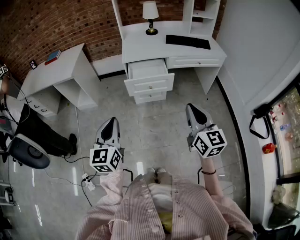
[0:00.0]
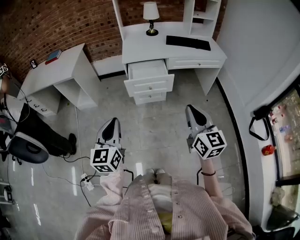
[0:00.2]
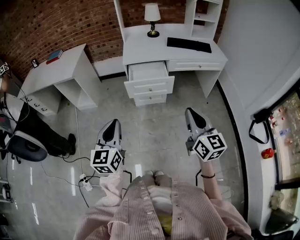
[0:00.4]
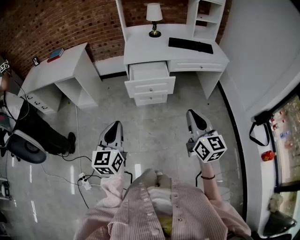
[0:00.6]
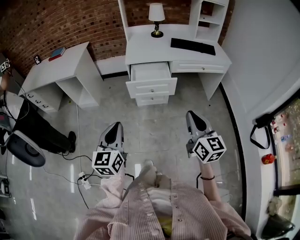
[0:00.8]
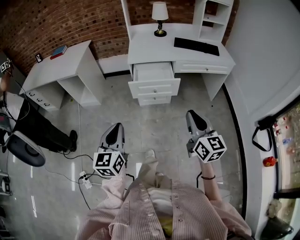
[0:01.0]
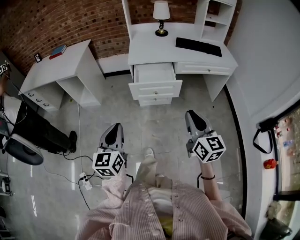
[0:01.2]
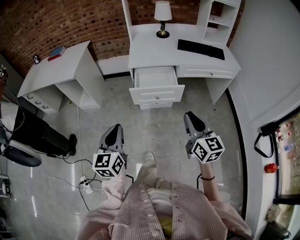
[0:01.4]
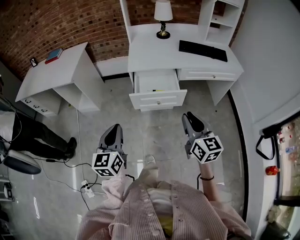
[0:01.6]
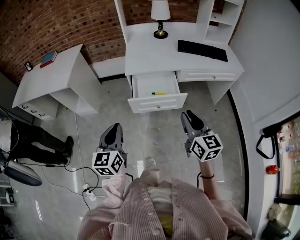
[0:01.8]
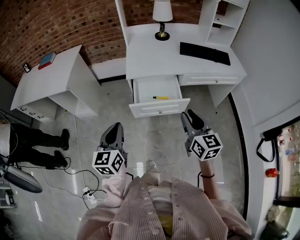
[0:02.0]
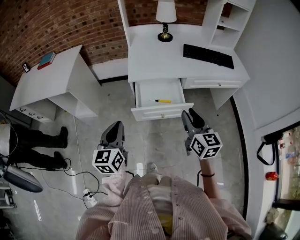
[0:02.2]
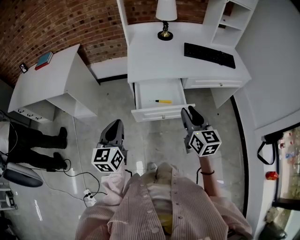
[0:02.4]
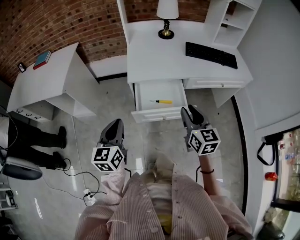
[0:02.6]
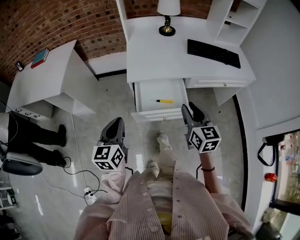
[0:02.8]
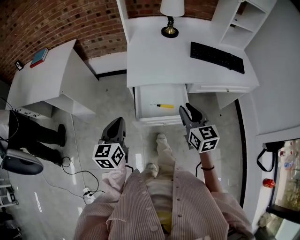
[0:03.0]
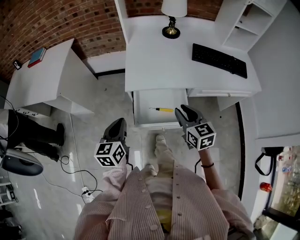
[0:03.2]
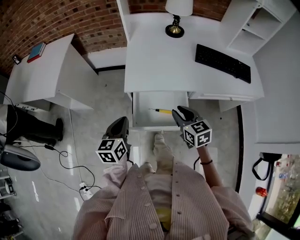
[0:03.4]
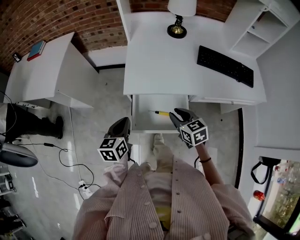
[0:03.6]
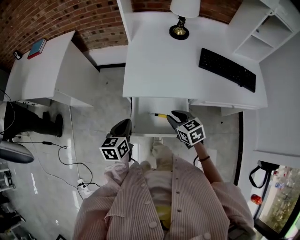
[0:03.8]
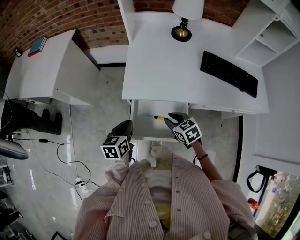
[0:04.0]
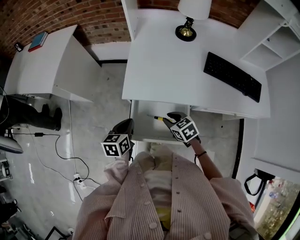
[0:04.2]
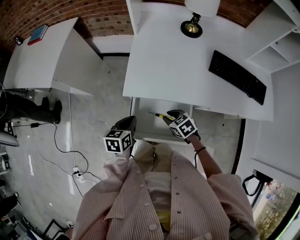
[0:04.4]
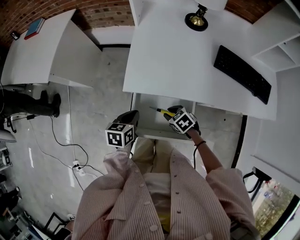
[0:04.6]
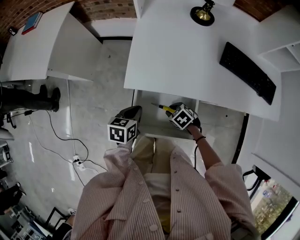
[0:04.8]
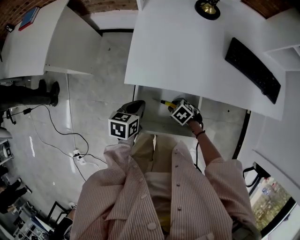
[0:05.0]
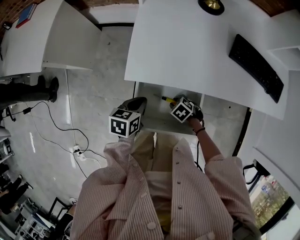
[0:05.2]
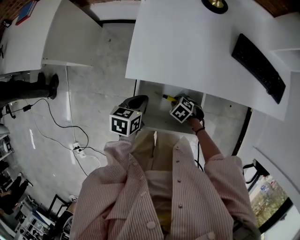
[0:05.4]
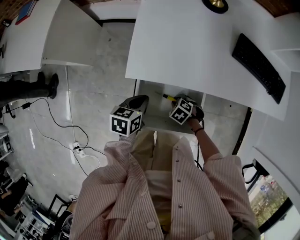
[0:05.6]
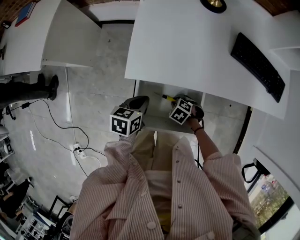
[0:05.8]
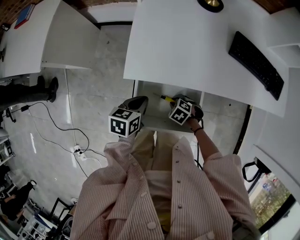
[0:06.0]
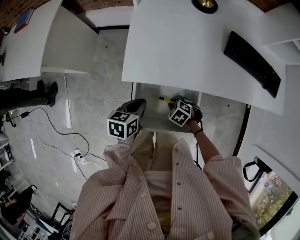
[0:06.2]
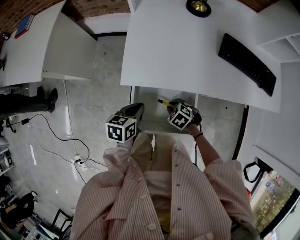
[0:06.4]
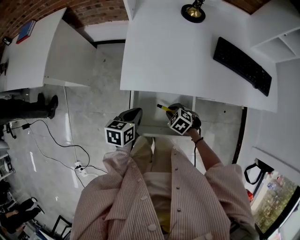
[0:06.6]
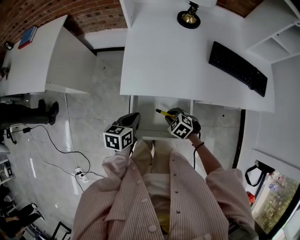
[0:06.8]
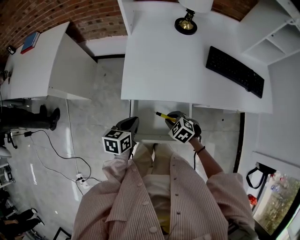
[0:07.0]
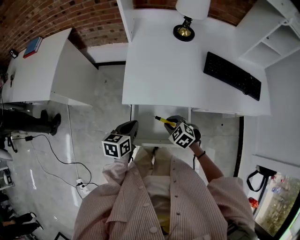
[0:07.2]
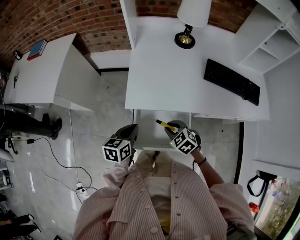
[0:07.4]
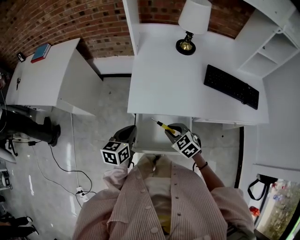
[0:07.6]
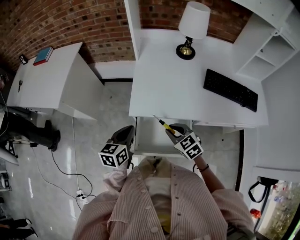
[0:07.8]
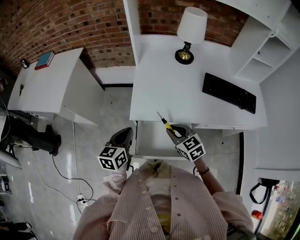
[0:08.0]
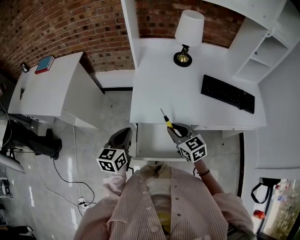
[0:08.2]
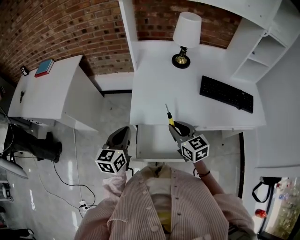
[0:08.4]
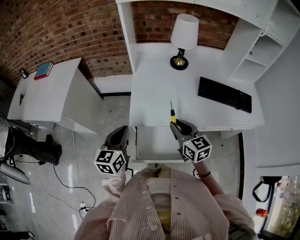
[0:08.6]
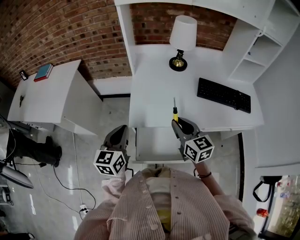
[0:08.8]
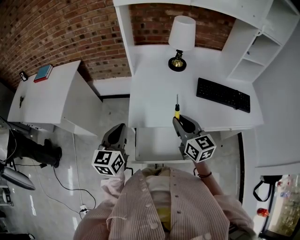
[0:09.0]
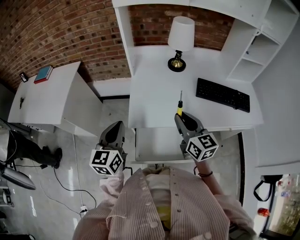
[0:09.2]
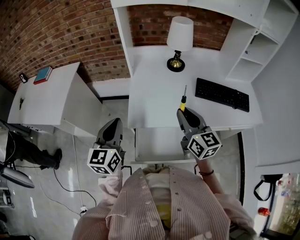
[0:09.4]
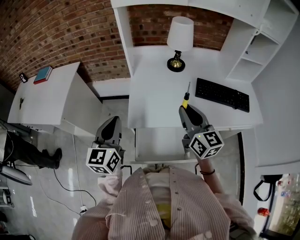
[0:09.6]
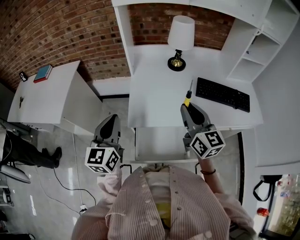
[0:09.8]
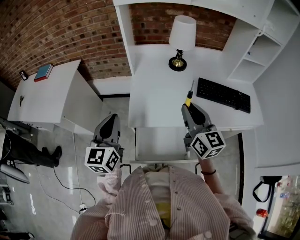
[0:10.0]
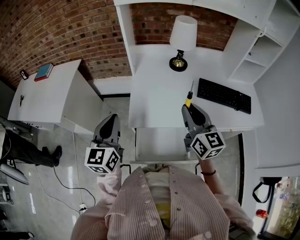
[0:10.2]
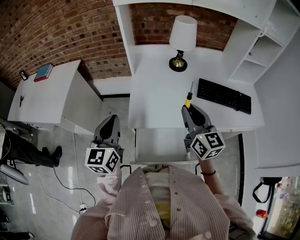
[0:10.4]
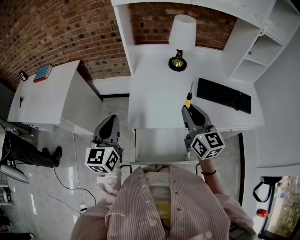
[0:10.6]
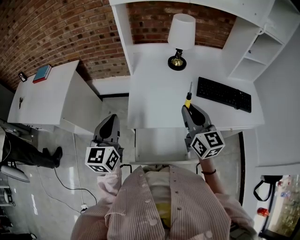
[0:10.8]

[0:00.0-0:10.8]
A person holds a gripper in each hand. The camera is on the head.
0:00.0 to 0:01.6: Both grippers travel together forward, roughly 15 cm.
0:01.6 to 0:03.0: Both grippers travel together forward, approximately 25 cm.
0:03.0 to 0:04.6: The right gripper heads downward and forward, covering roughly 30 cm, and tips its fingers downward by roughly 40 degrees; the left gripper goes some 25 cm downward, forward and to the right, and rotates some 30 degrees.
0:04.6 to 0:06.2: The right gripper is displaced downward by roughly 5 cm.
0:06.2 to 0:07.8: The left gripper moves upward and to the left, some 15 cm, and changes its angle by about 20 degrees, while the right gripper shifts about 20 cm upward, and points its fingers roughly 30 degrees further upward.
0:07.8 to 0:09.2: The grippers both shift upward by approximately 15 cm. The right gripper angles its fingers upward, by approximately 30 degrees; the left gripper changes its angle by some 20 degrees.
0:09.2 to 0:10.8: The right gripper ends up roughly 5 cm from where it was.

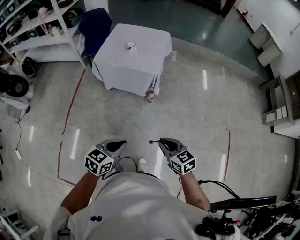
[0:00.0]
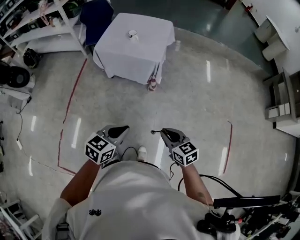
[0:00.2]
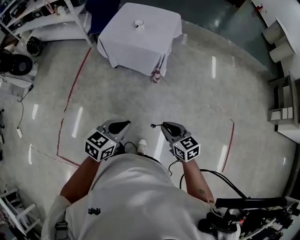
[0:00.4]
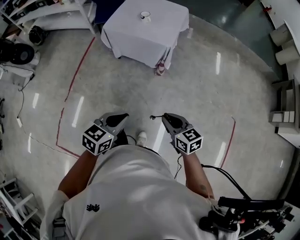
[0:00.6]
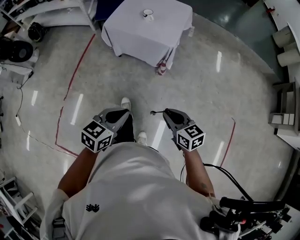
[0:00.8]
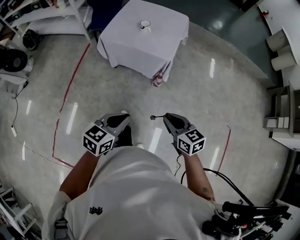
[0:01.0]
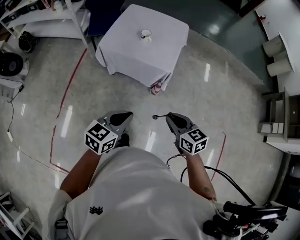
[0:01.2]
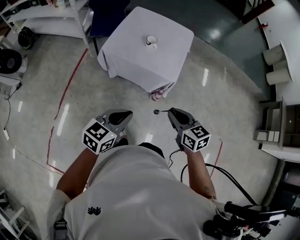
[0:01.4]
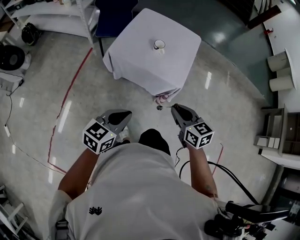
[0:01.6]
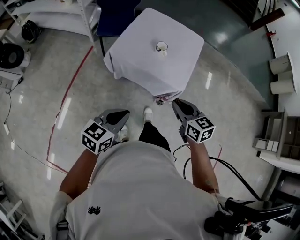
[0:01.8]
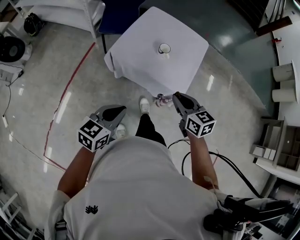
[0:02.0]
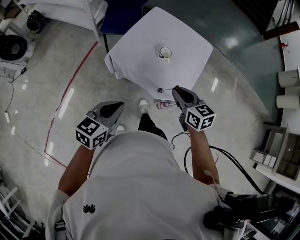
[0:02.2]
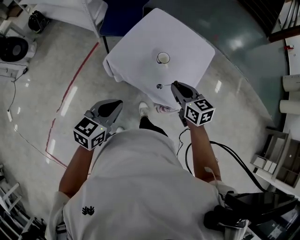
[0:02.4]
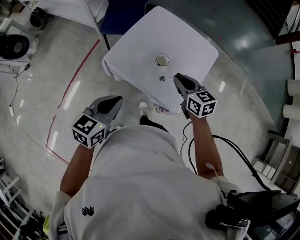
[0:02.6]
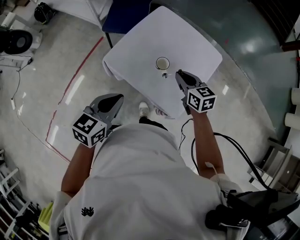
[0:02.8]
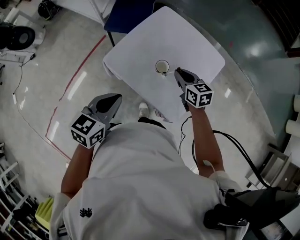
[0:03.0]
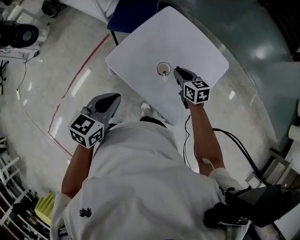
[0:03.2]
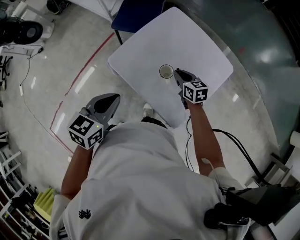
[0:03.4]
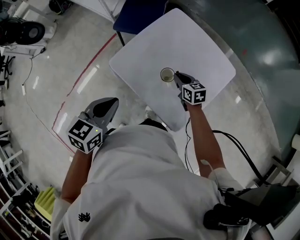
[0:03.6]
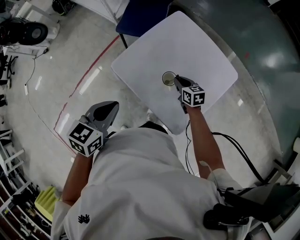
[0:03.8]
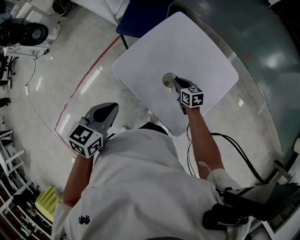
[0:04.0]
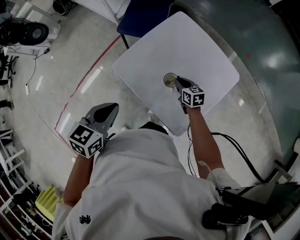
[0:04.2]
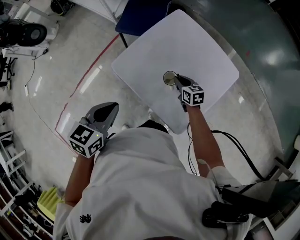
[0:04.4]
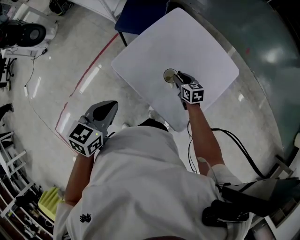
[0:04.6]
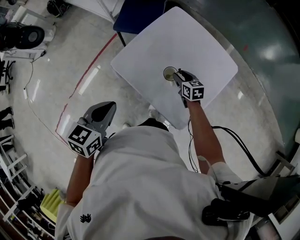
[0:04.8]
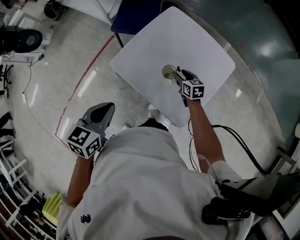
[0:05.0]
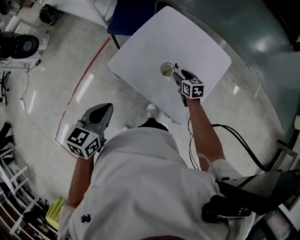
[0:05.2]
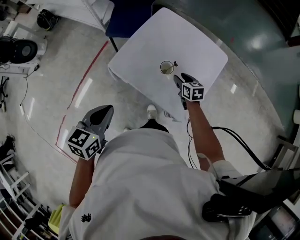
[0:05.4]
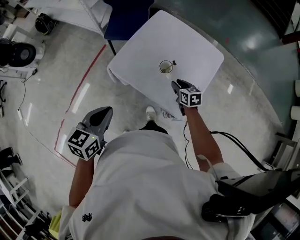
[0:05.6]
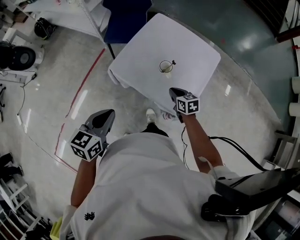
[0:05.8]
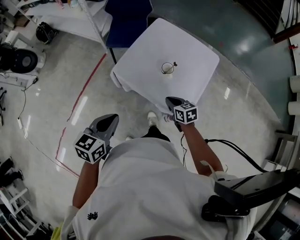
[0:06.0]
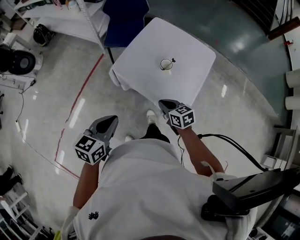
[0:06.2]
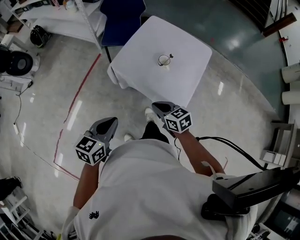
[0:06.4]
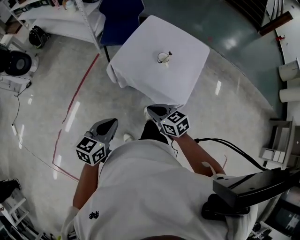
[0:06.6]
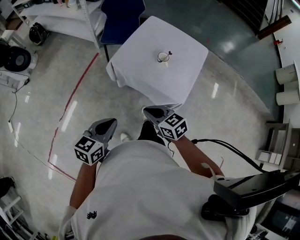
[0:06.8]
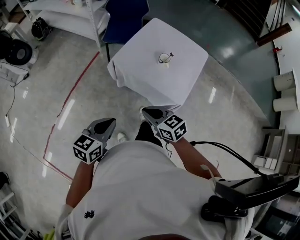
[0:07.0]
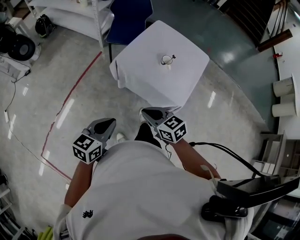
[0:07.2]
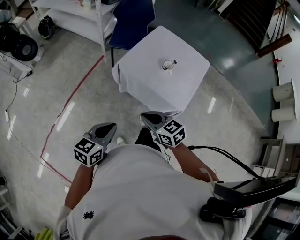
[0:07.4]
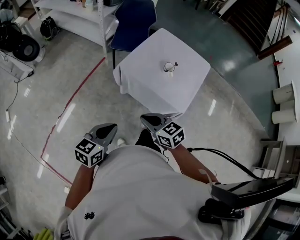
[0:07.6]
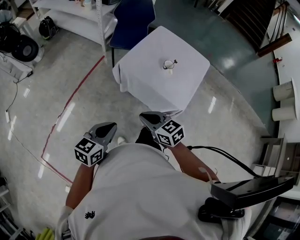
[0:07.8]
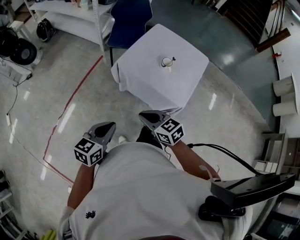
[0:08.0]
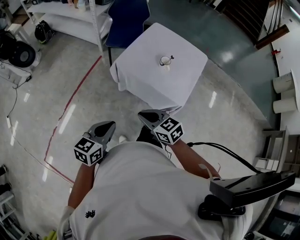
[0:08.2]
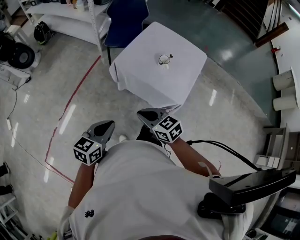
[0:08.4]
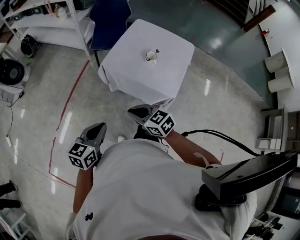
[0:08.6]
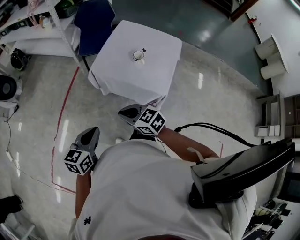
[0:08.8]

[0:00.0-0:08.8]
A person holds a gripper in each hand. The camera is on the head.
0:00.0 to 0:01.4: Both grippers travel together forward, about 30 cm.
0:01.4 to 0:03.0: The two grippers go approximately 40 cm forward. The left gripper turns by approximately 30 degrees.
0:03.0 to 0:04.4: The right gripper heads downward and forward, covering some 15 cm.
0:04.4 to 0:05.8: The right gripper heads backward, covering roughly 15 cm, and opens, then closes once more. Meanwhile the left gripper heads backward and to the left, covering approximately 15 cm.
0:05.8 to 0:07.4: The right gripper travels backward, to the left and upward by roughly 40 cm, and rotates some 30 degrees, while the left gripper goes roughly 20 cm backward and to the left.
0:07.4 to 0:08.8: The grippers stay close to where they were, moving slightly.

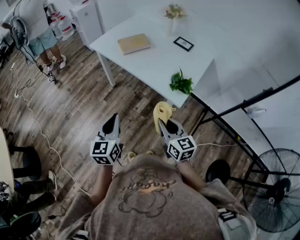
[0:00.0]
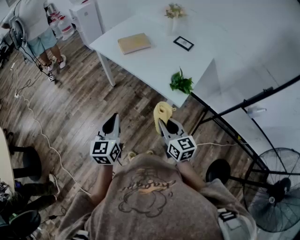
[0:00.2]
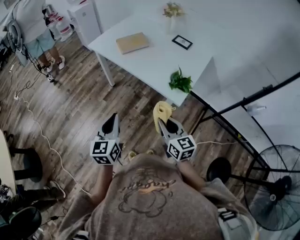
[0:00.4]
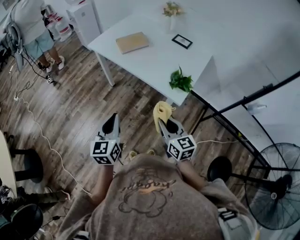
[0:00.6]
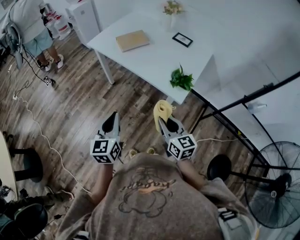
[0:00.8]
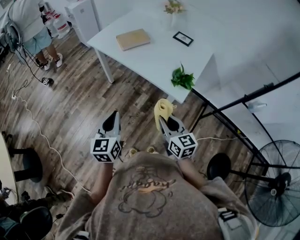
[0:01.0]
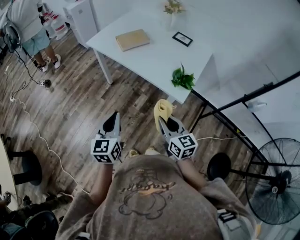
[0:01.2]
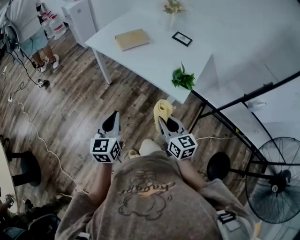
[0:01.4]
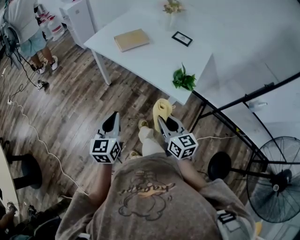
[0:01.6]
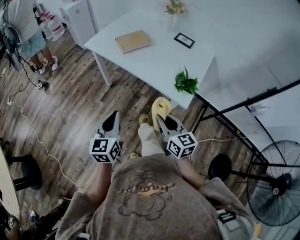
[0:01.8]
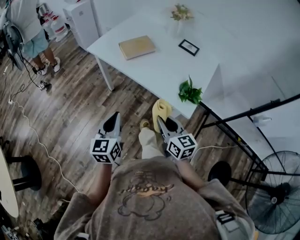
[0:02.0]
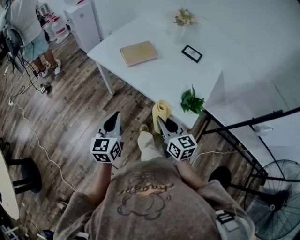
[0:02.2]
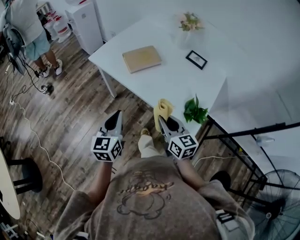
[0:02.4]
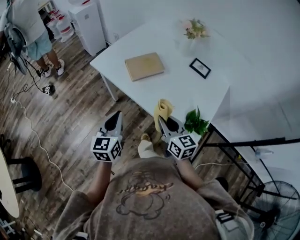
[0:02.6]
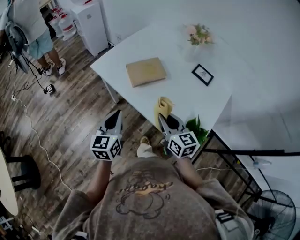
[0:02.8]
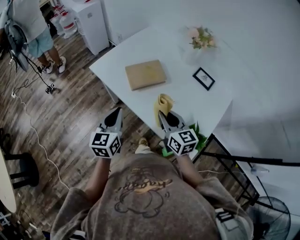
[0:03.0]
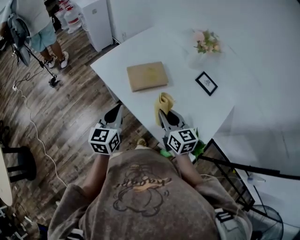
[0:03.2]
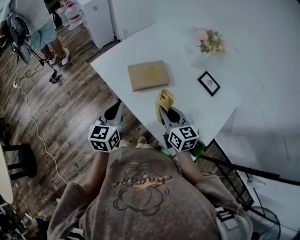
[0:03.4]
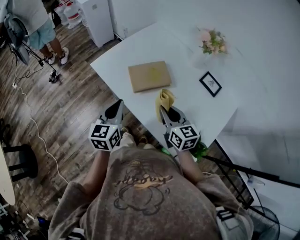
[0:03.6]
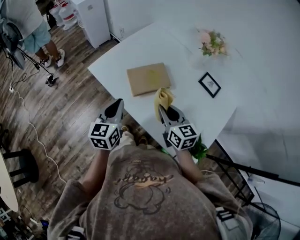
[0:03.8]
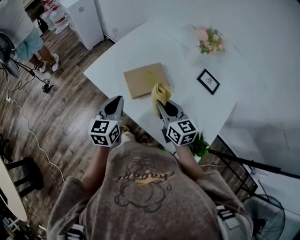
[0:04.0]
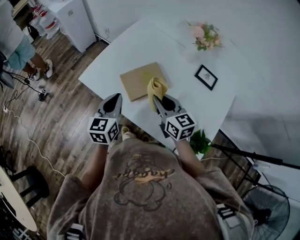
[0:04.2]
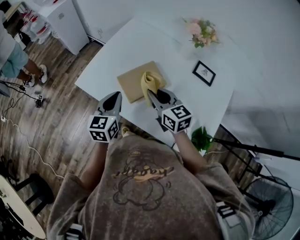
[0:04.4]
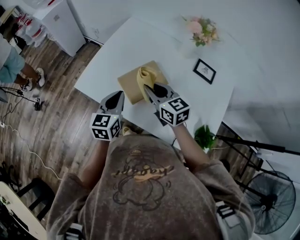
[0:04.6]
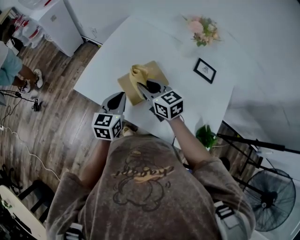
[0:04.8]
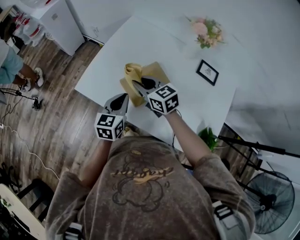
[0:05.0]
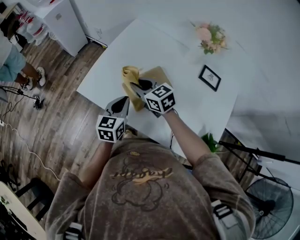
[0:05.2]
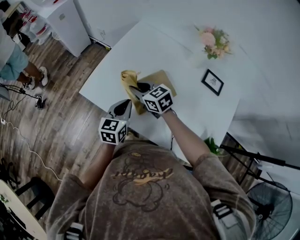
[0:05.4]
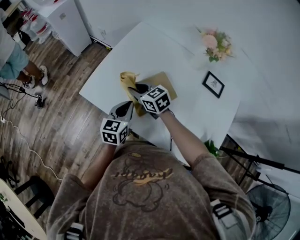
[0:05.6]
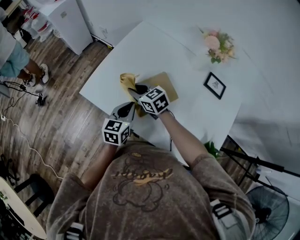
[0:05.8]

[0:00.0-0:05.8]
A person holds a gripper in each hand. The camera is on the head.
0:00.0 to 0:01.4: The grippers make only small movements.
0:01.4 to 0:02.8: The grippers both shift forward by about 35 cm.
0:02.8 to 0:04.4: Both grippers travel together forward, some 25 cm.
0:04.4 to 0:05.8: The left gripper travels downward by some 10 cm, while the right gripper shifts approximately 20 cm forward, downward and to the left, and changes its angle by approximately 20 degrees.
